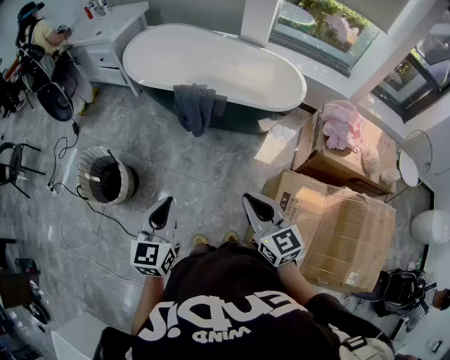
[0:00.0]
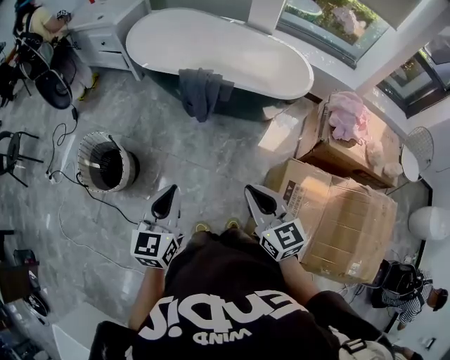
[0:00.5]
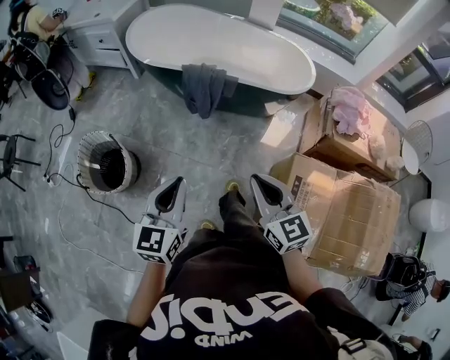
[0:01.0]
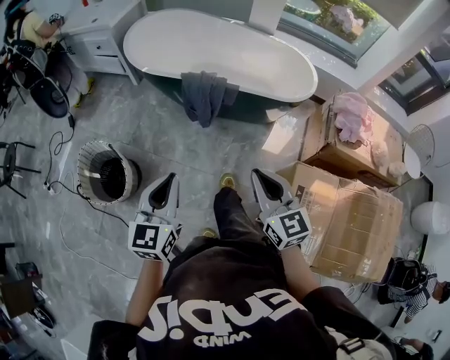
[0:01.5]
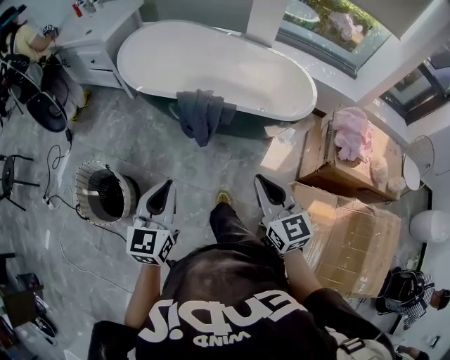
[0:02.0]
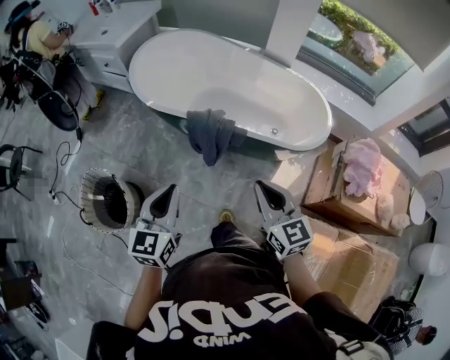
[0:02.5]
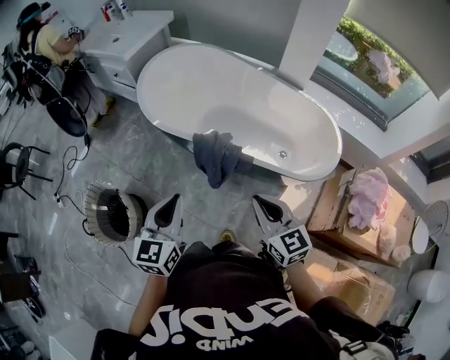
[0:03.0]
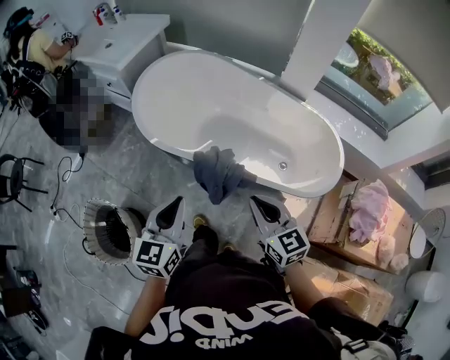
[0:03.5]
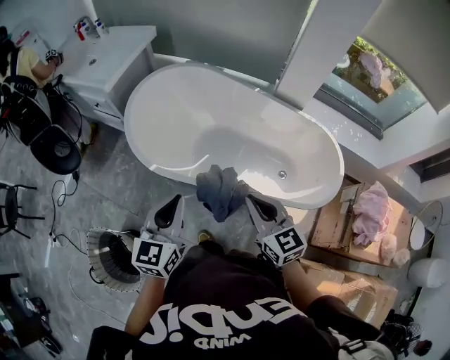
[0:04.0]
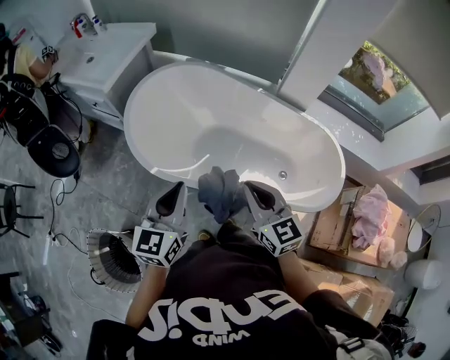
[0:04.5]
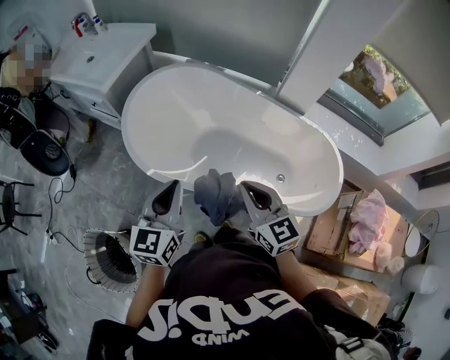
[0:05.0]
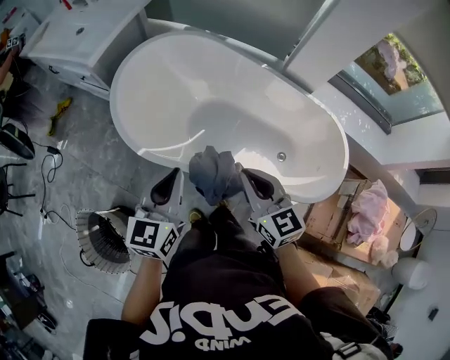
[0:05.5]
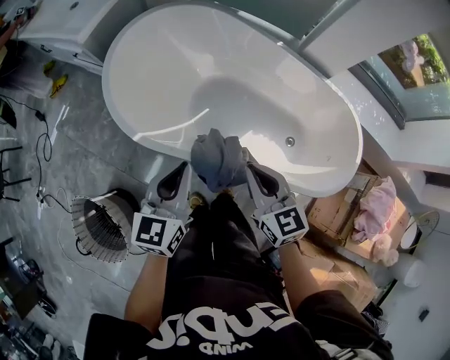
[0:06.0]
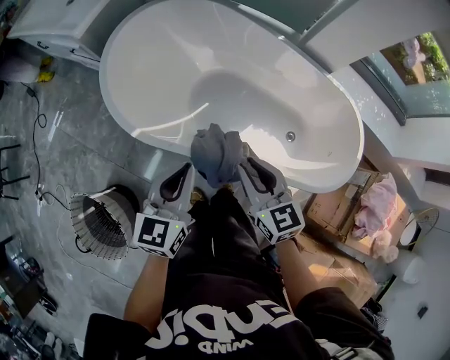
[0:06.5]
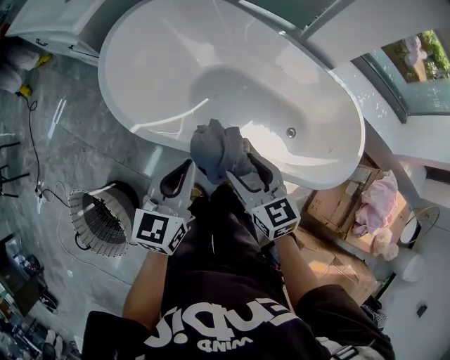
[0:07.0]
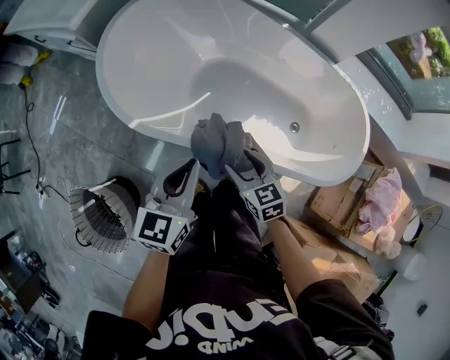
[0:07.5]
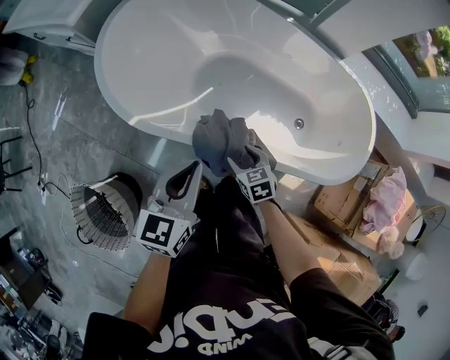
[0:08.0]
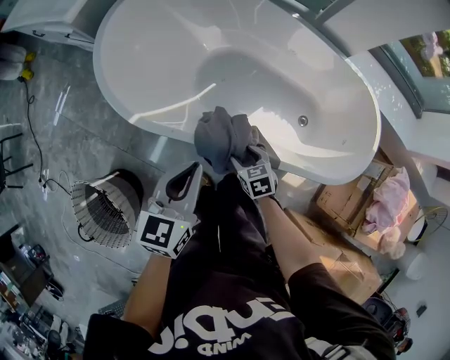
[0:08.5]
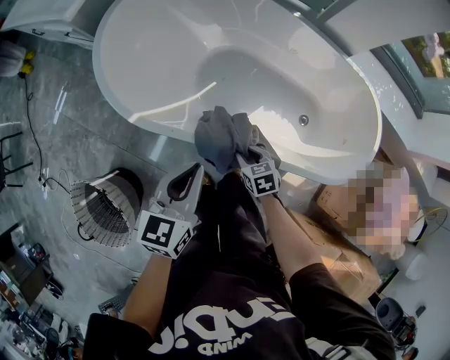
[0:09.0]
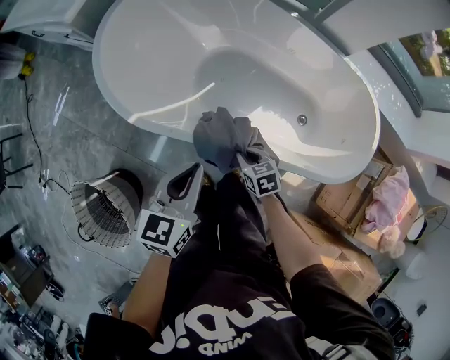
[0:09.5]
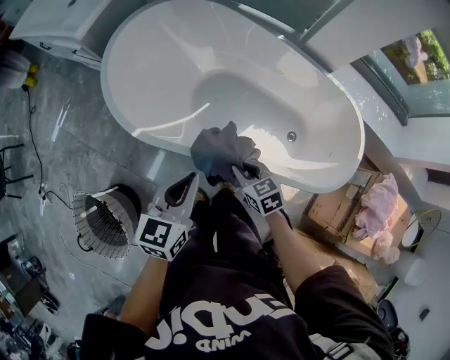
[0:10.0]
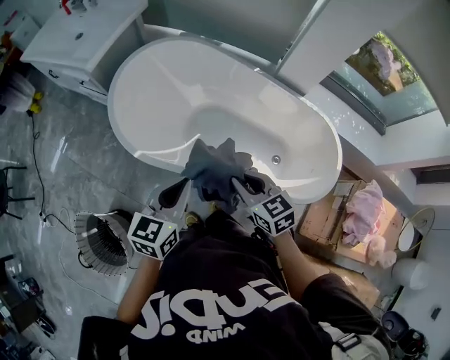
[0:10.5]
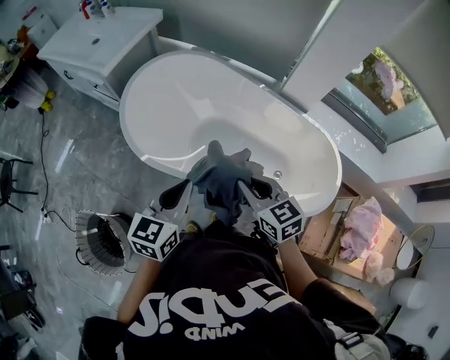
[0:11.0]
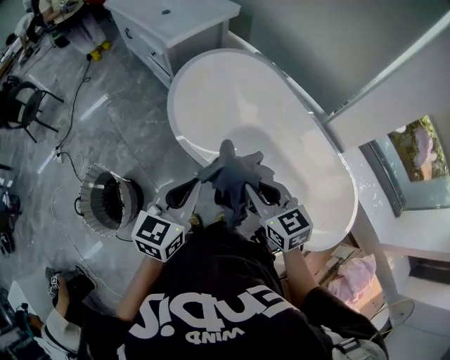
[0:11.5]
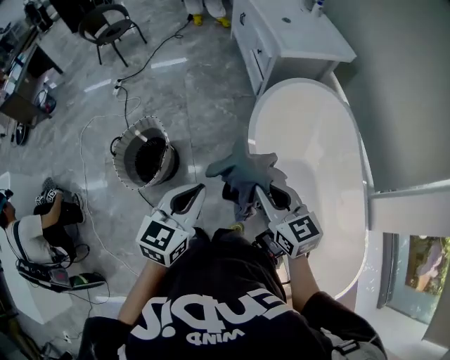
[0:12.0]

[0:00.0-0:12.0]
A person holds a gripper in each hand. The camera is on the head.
0:00.0 to 0:02.0: The grippers both shift forward by about 15 cm.
0:02.0 to 0:04.0: Both grippers travel together forward, some 40 cm.
0:04.0 to 0:06.0: The right gripper heads forward and downward, covering some 15 cm. The left gripper goes roughly 15 cm downward and forward.
0:06.0 to 0:08.0: The left gripper changes place by some 5 cm. The right gripper goes about 25 cm downward, rotates approximately 30 degrees, and opens up.
0:08.0 to 0:10.0: The right gripper goes roughly 10 cm upward, and closes.
0:10.0 to 0:12.0: The right gripper shifts about 30 cm upward, and rotates approximately 50 degrees; the left gripper moves some 25 cm, and changes its angle by roughly 50 degrees.

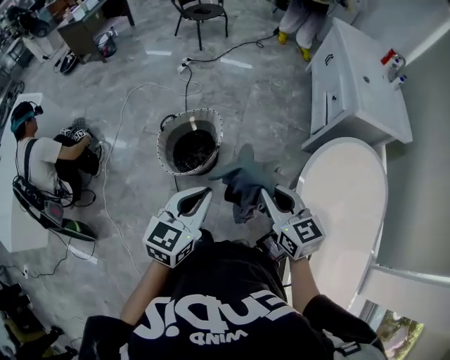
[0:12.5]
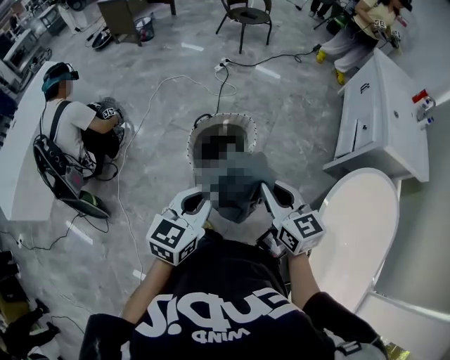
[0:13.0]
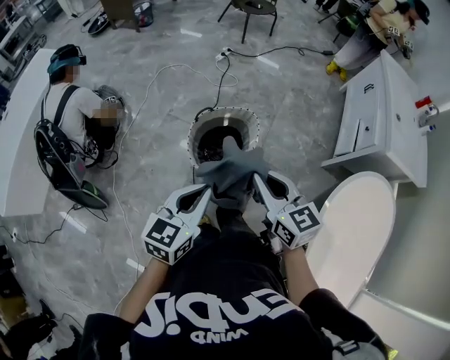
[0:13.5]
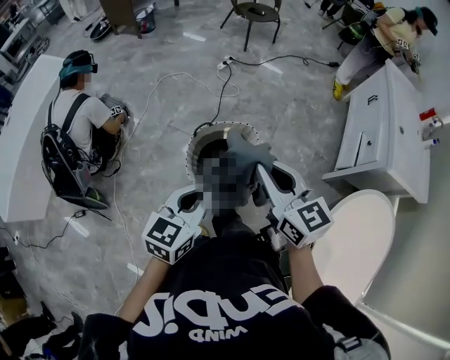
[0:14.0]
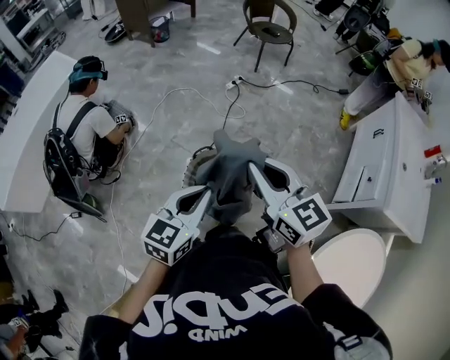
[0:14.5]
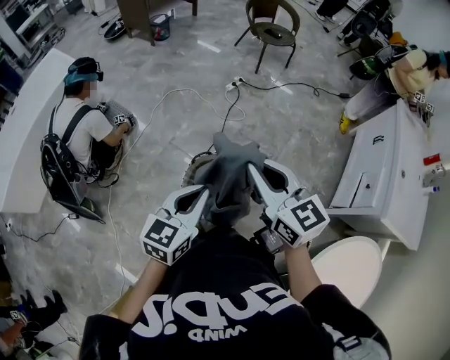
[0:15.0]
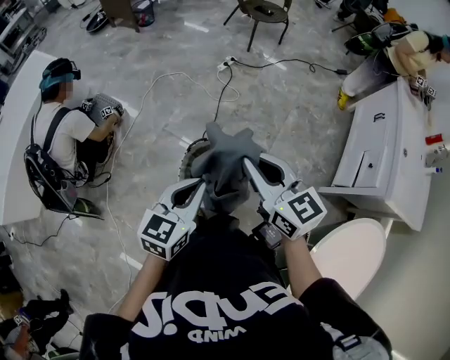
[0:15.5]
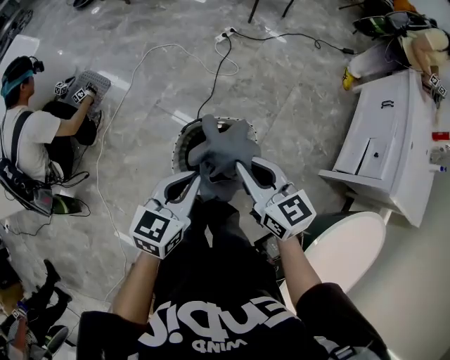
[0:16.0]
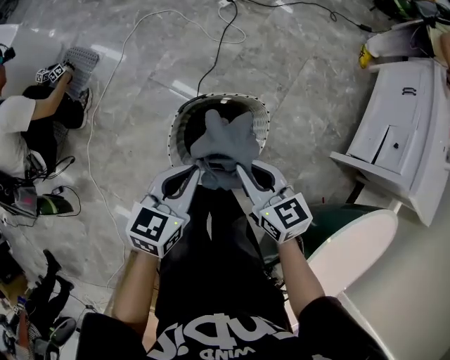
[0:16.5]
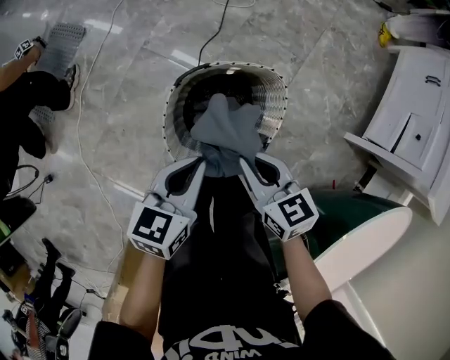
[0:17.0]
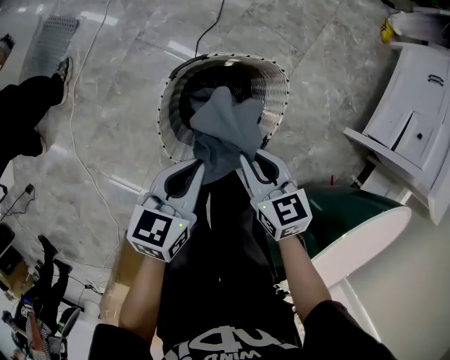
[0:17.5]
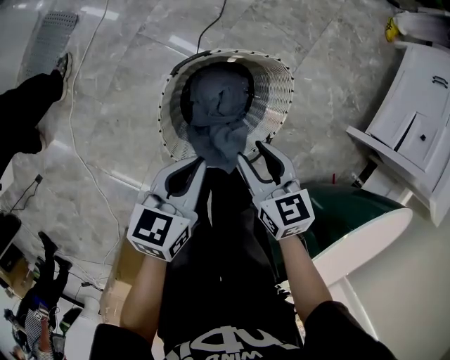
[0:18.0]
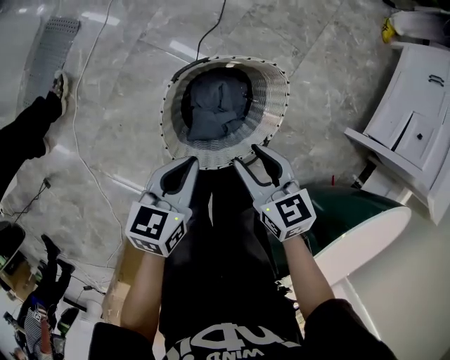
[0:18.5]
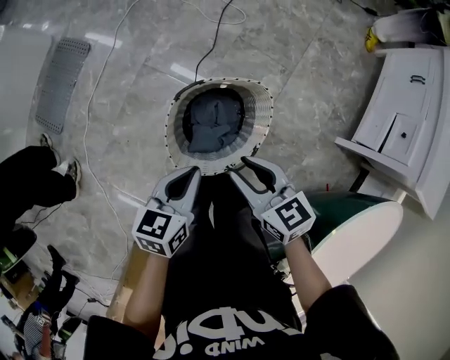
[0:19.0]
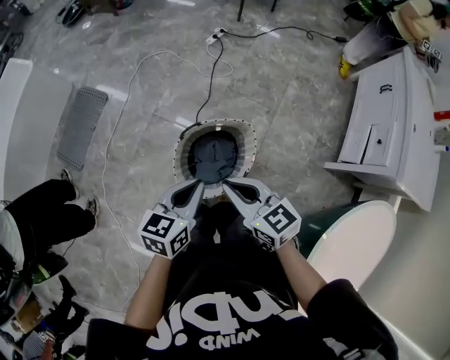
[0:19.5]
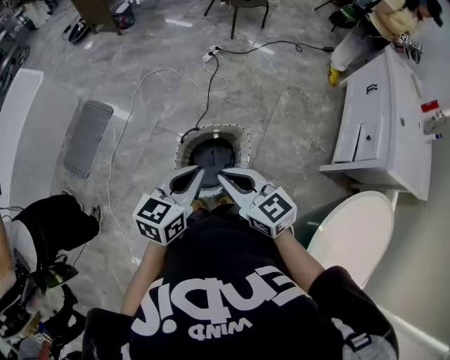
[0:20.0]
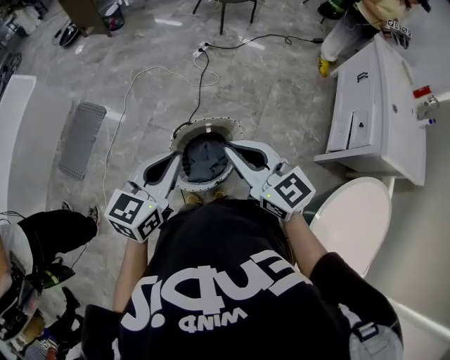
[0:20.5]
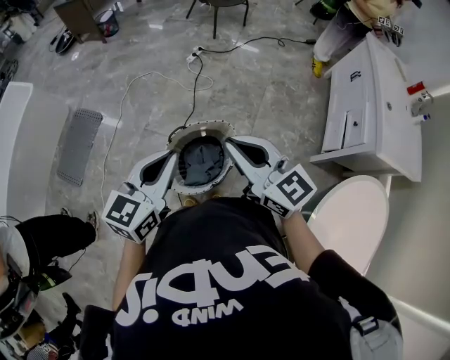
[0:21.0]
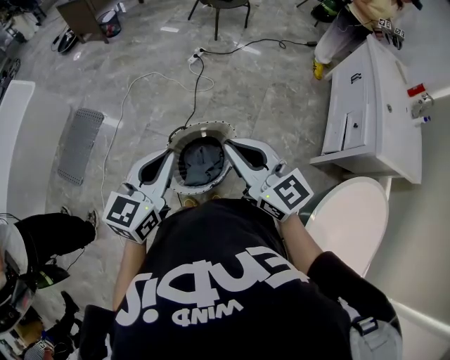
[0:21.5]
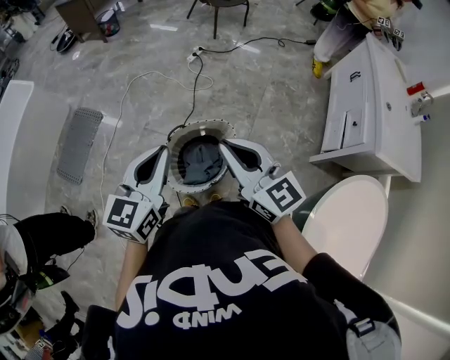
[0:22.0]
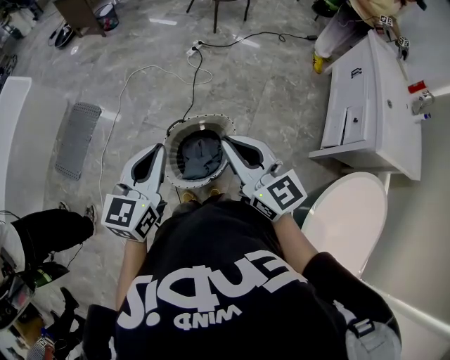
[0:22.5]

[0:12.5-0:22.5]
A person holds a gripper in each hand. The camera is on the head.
0:12.5 to 0:14.5: Both grippers travel together forward and to the left, roughly 35 cm. The right gripper turns by some 30 degrees.
0:14.5 to 0:16.5: Both grippers travel together downward, approximately 30 cm. The right gripper turns by roughly 30 degrees.
0:16.5 to 0:18.5: The two grippers go some 15 cm downward. The right gripper opens its fingers.
0:18.5 to 0:20.5: The two grippers go roughly 40 cm upward. The right gripper angles its fingers upward, by some 30 degrees, and closes, while the left gripper changes its angle by approximately 30 degrees.
0:20.5 to 0:22.5: The grippers move only a little.

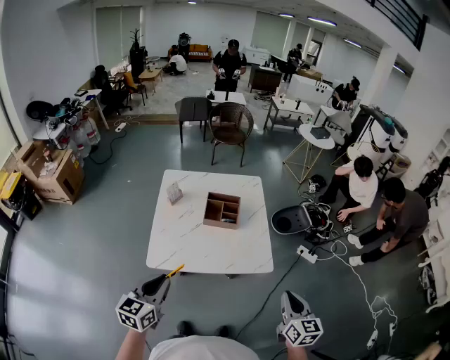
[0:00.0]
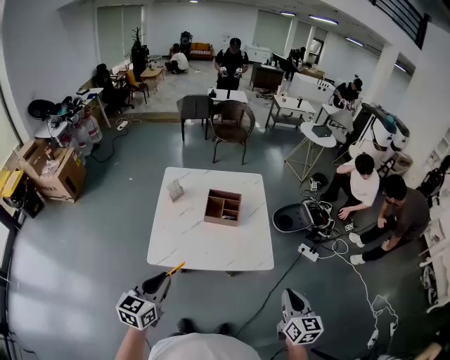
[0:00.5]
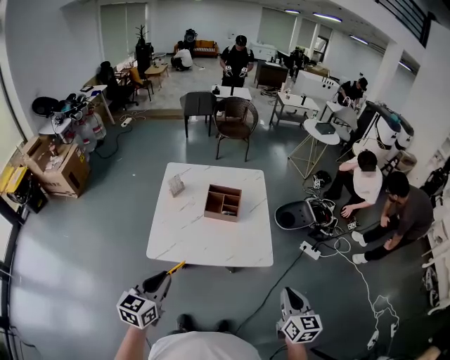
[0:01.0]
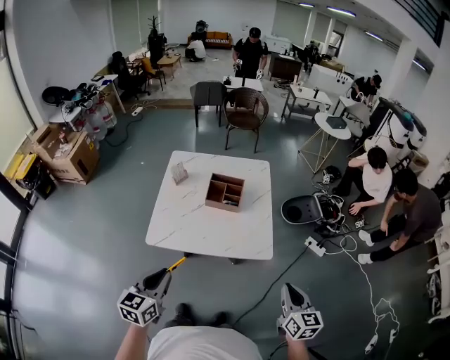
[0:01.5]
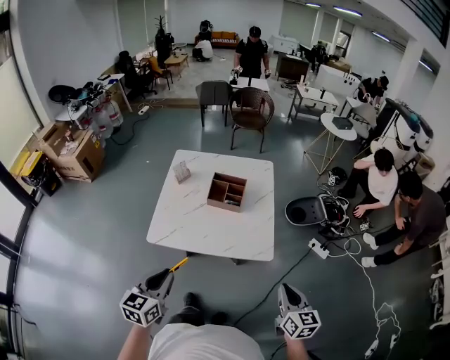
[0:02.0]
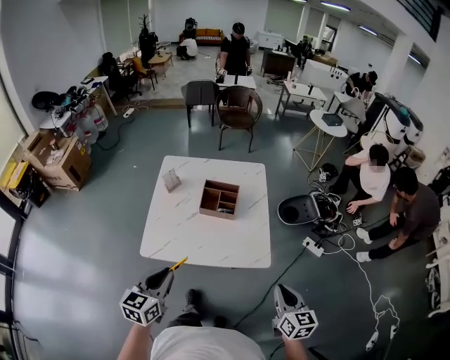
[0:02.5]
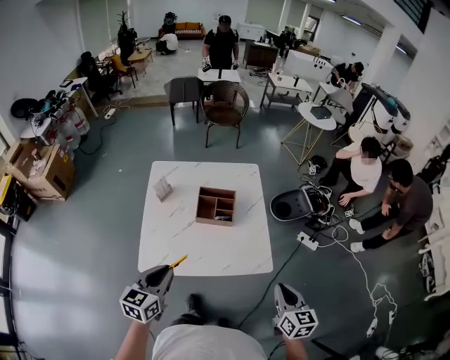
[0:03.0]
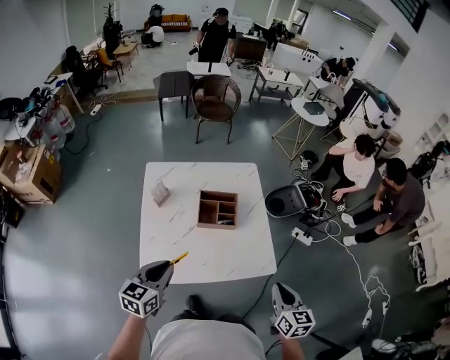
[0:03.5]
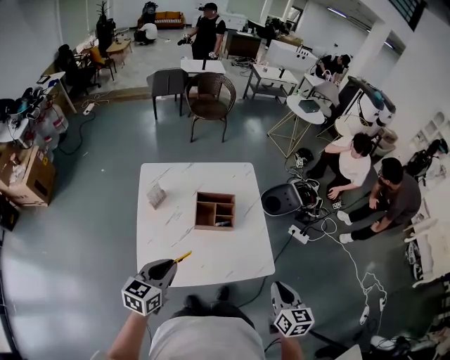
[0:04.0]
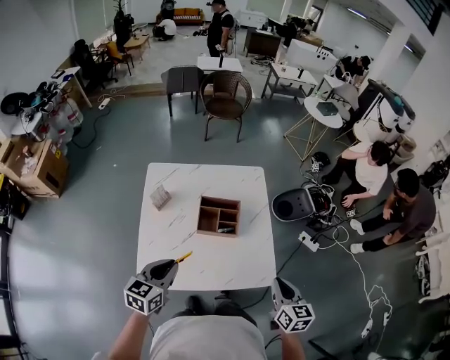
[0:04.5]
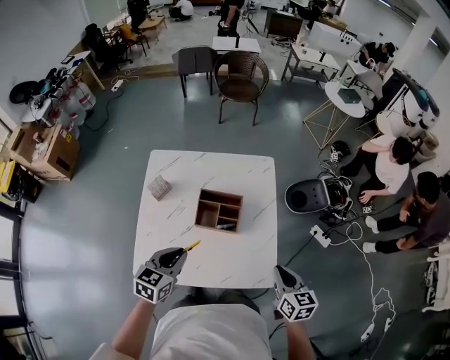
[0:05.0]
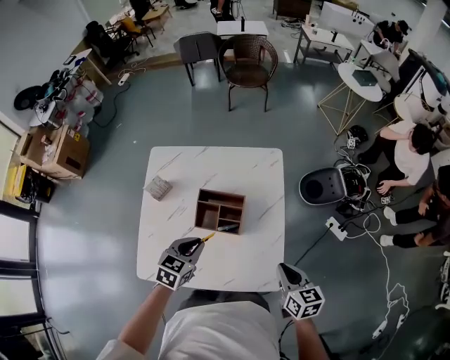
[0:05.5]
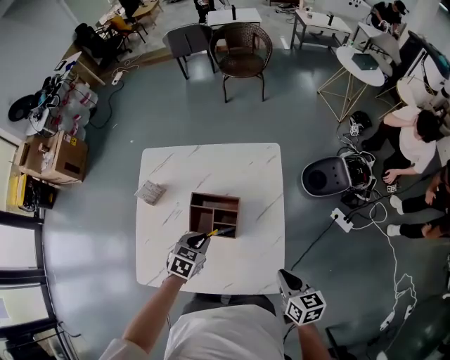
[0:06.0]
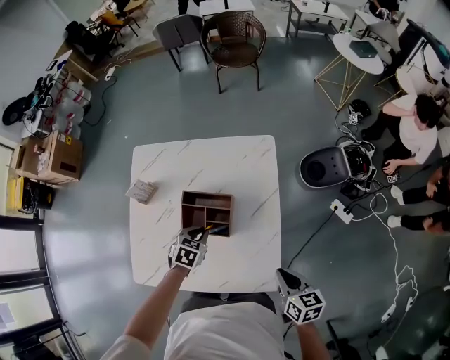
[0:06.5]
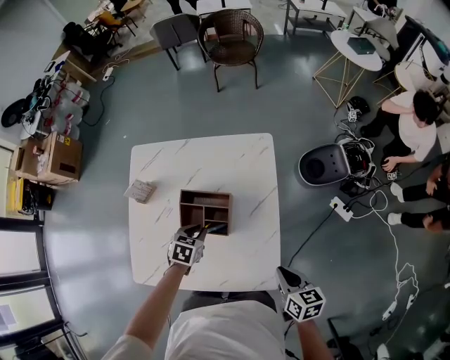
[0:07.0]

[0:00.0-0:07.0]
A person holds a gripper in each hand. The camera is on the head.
0:00.0 to 0:02.0: Both grippers travel together to the right, some 5 cm.
0:02.0 to 0:03.5: The left gripper is displaced forward and to the left by some 25 cm, while the right gripper shifts about 20 cm to the left and forward.
0:03.5 to 0:05.0: The right gripper moves forward, some 20 cm. The left gripper moves forward, to the right and downward, roughly 15 cm.
0:05.0 to 0:07.0: The left gripper moves downward, forward and to the right, some 25 cm, and rotates approximately 30 degrees. The right gripper moves downward, to the right and forward, approximately 15 cm.
